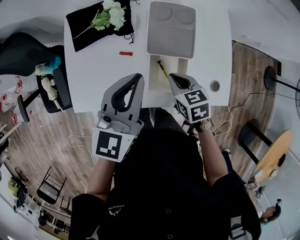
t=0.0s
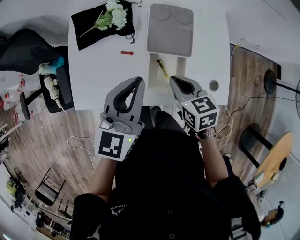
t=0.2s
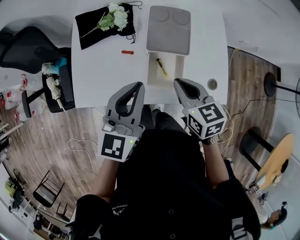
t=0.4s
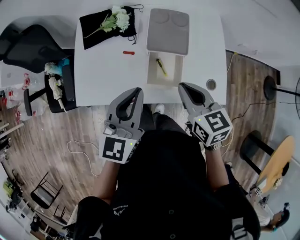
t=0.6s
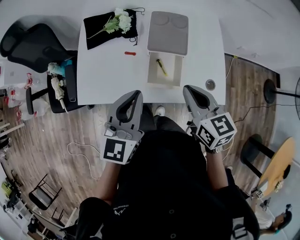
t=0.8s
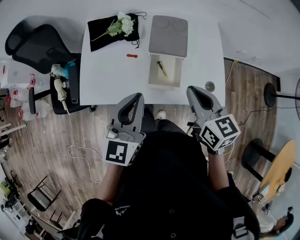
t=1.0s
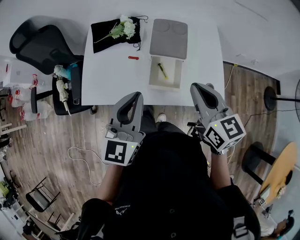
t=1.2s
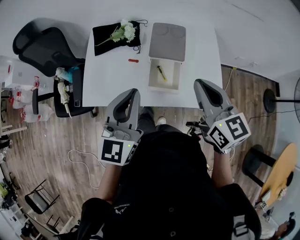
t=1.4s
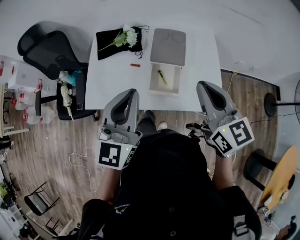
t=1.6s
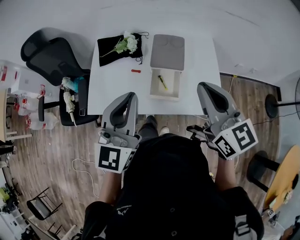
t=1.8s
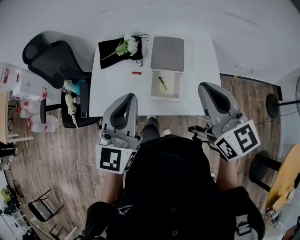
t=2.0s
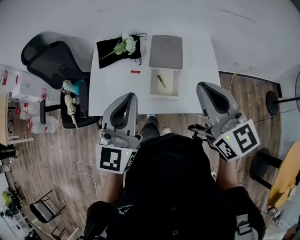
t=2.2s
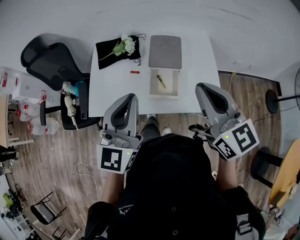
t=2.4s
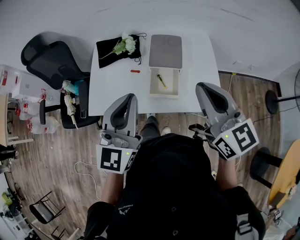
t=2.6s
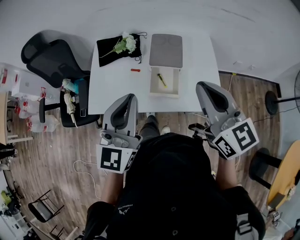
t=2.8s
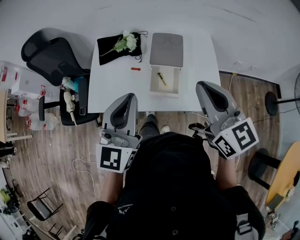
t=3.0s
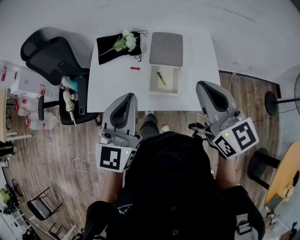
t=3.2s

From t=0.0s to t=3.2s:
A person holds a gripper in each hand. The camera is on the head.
From t=0.0s to t=1.6s: The right gripper moves upward and backward, about 30 cm, and angles its fingers upward, by approximately 40 degrees, while the left gripper goes approximately 20 cm backward and upward, and turns by some 20 degrees.
From t=1.6s to t=3.2s: There are only small adjustments of the grippers.

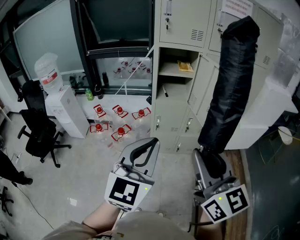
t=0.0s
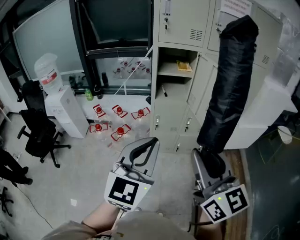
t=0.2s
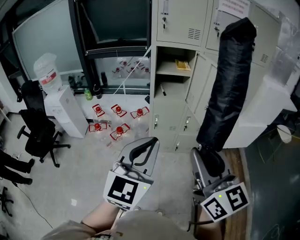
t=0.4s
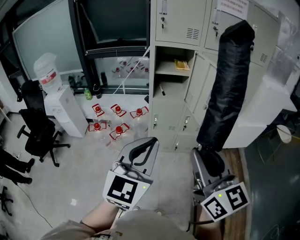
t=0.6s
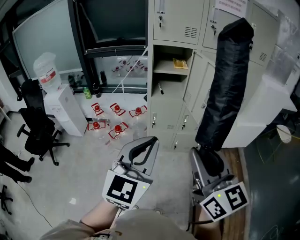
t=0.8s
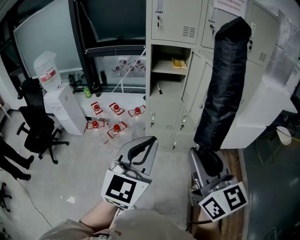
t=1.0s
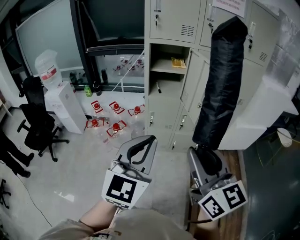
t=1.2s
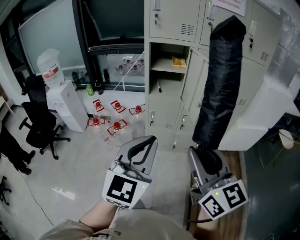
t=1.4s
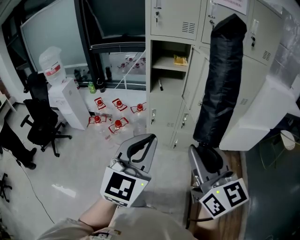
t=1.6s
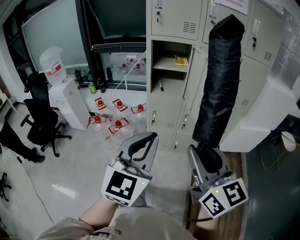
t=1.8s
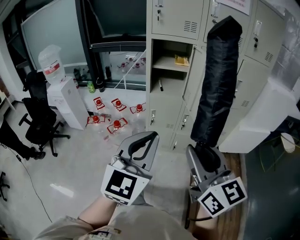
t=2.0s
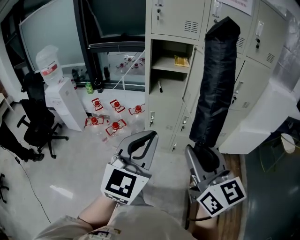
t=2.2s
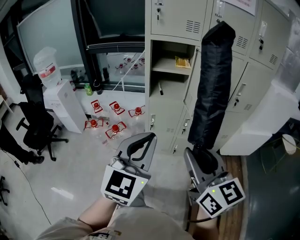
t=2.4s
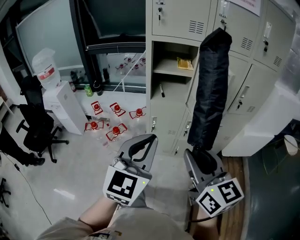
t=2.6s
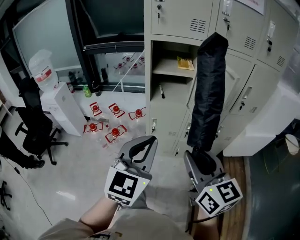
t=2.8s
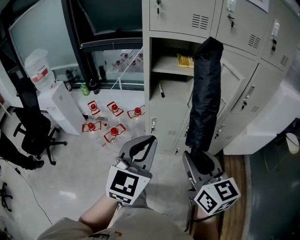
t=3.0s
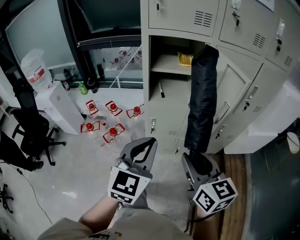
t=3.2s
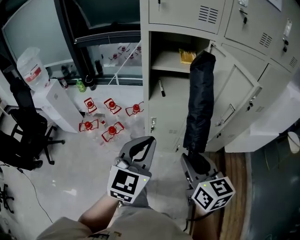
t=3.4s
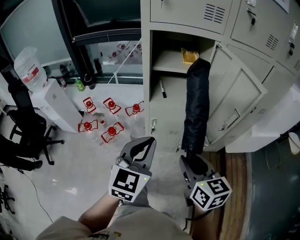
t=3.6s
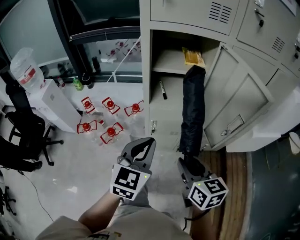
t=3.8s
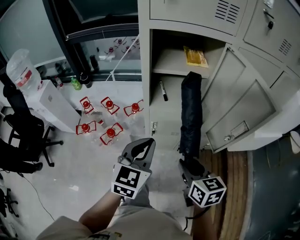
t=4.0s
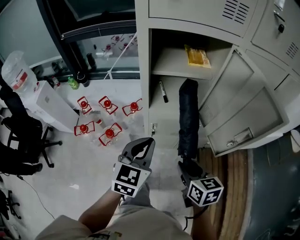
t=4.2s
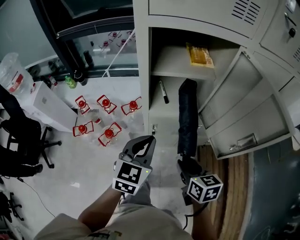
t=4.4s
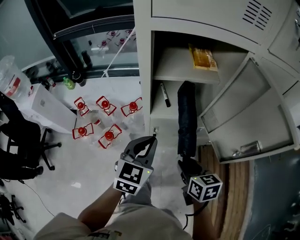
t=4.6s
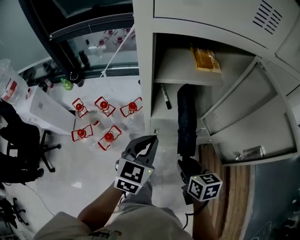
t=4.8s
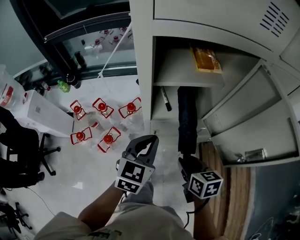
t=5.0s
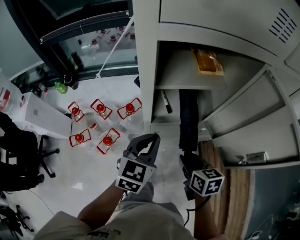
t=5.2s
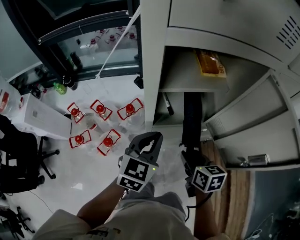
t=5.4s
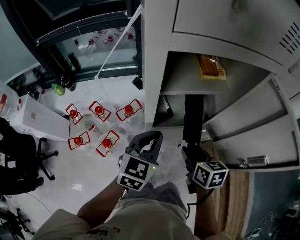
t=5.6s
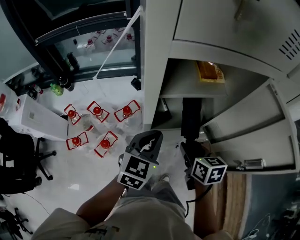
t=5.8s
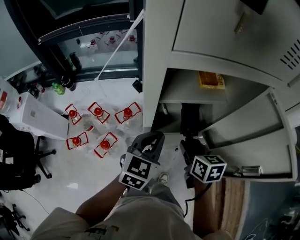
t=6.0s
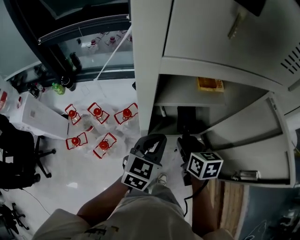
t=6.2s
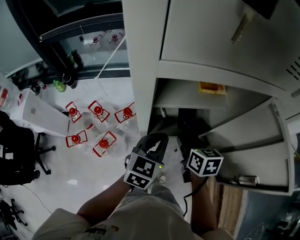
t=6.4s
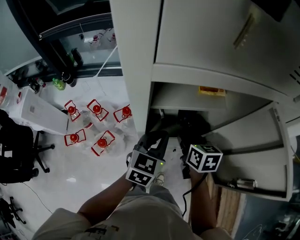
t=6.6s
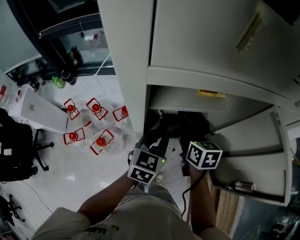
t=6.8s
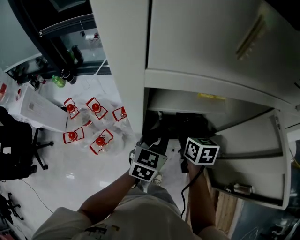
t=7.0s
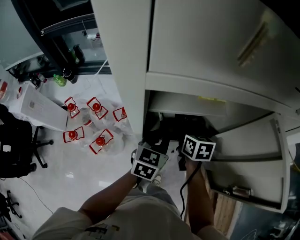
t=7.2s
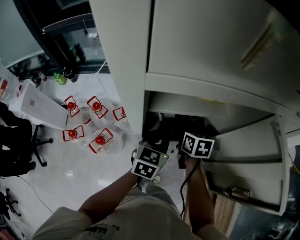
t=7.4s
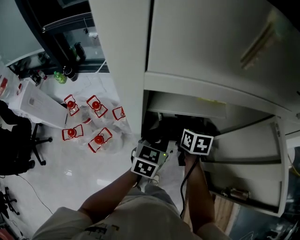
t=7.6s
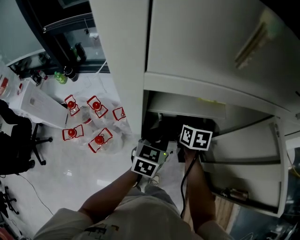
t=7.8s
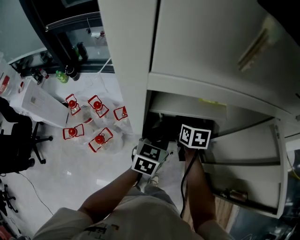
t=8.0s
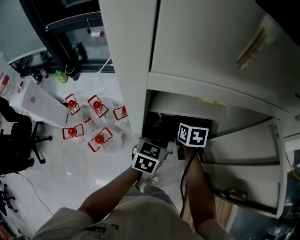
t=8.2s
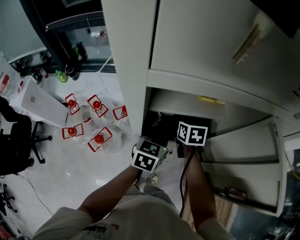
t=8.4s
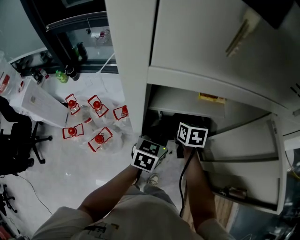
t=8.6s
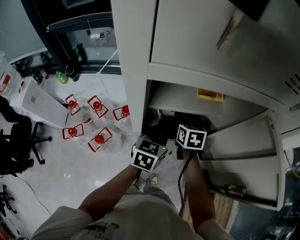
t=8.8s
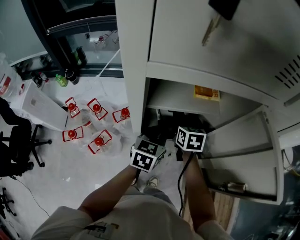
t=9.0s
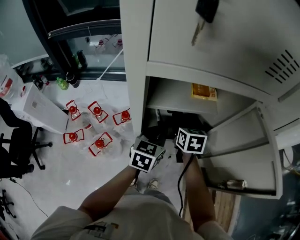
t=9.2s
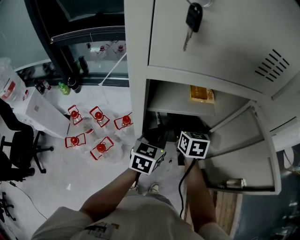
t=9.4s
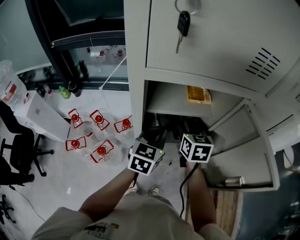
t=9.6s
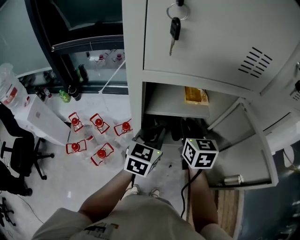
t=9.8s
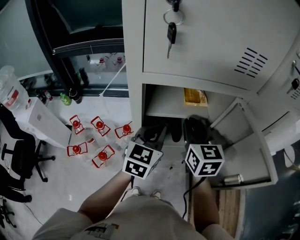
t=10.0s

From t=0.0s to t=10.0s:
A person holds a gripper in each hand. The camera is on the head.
From t=0.0s to t=1.4s: The grippers both shift to the right by roughly 10 cm.
From t=1.4s to t=2.8s: The right gripper is displaced forward and downward by about 15 cm; the left gripper is displaced forward by some 15 cm.
From t=2.8s to t=4.2s: The left gripper goes some 25 cm forward and downward; the right gripper heads downward and forward, covering approximately 30 cm, and turns by some 30 degrees.
From t=4.2s to t=5.8s: The grippers both shift forward by about 15 cm.
From t=5.8s to t=7.2s: The right gripper travels forward by about 15 cm; the left gripper goes roughly 10 cm forward and to the right.
From t=7.2s to t=8.6s: There are only small adjustments of the grippers.
From t=8.6s to t=10.0s: The right gripper travels upward by roughly 25 cm, turns by about 30 degrees, and closes. The left gripper is displaced upward by about 15 cm.

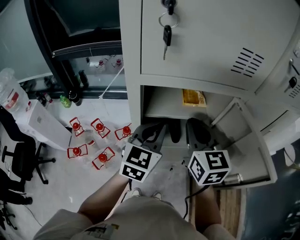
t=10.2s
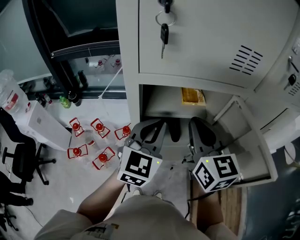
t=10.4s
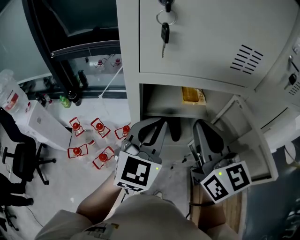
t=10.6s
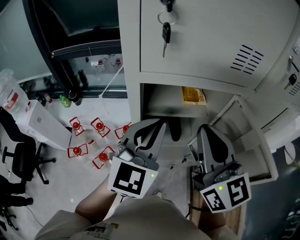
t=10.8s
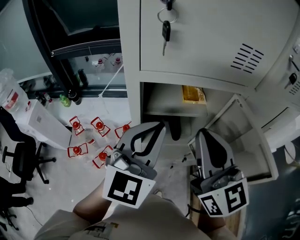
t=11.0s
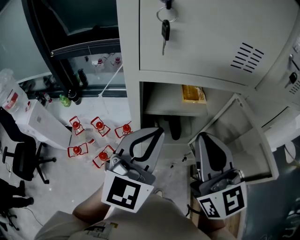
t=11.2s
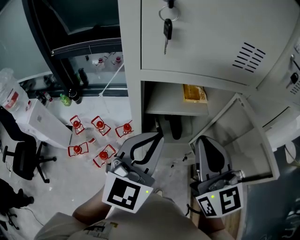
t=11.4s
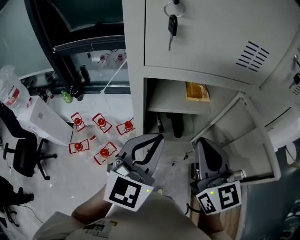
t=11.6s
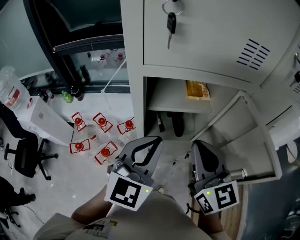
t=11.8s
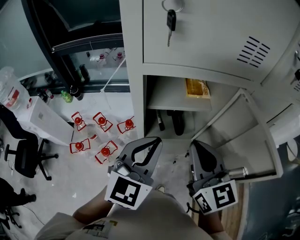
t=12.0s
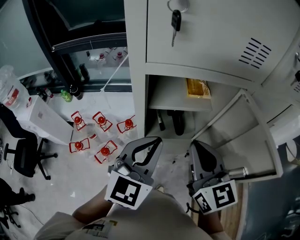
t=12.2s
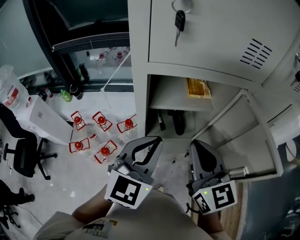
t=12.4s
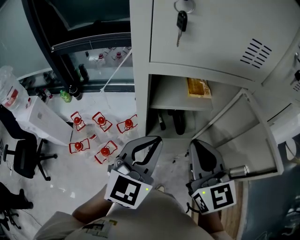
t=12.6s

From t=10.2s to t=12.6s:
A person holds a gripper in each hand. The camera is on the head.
From t=10.2s to t=11.4s: Both grippers move backward and upward, roughly 10 cm.
From t=11.4s to t=12.6s: The right gripper moves approximately 5 cm.

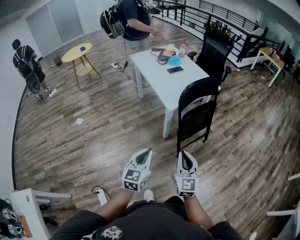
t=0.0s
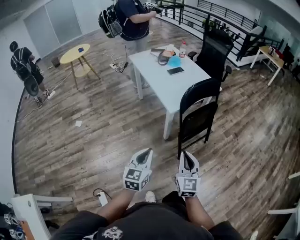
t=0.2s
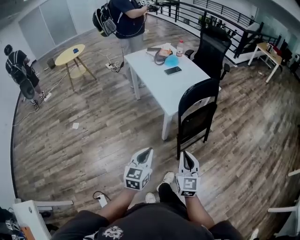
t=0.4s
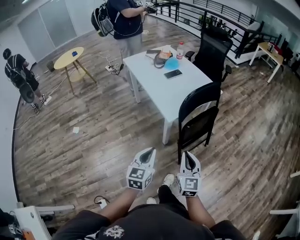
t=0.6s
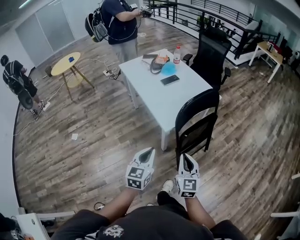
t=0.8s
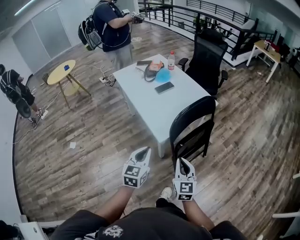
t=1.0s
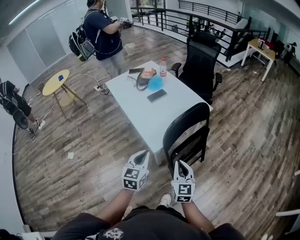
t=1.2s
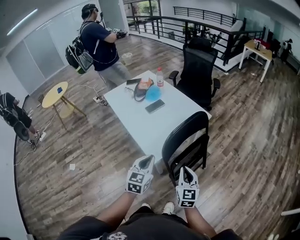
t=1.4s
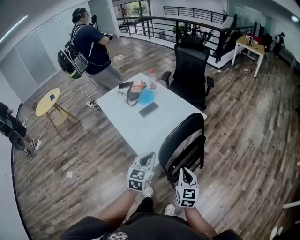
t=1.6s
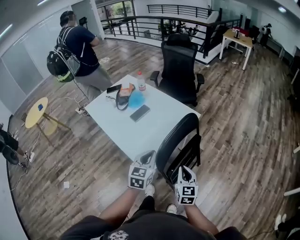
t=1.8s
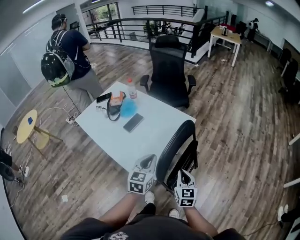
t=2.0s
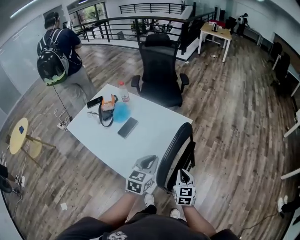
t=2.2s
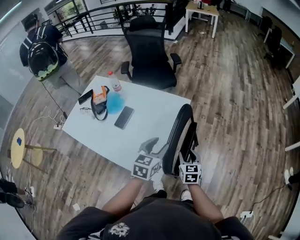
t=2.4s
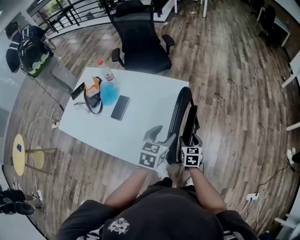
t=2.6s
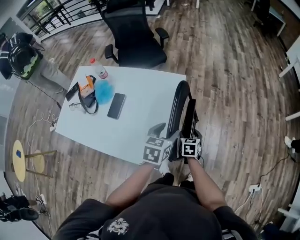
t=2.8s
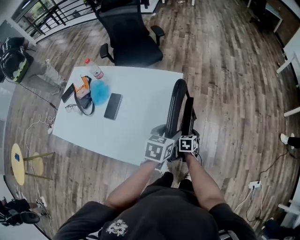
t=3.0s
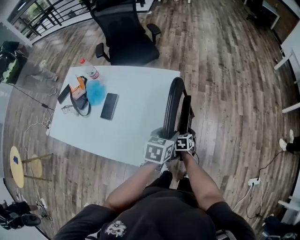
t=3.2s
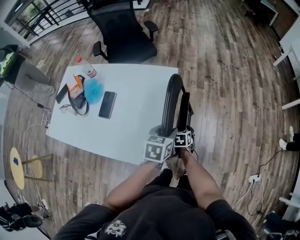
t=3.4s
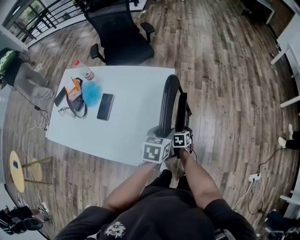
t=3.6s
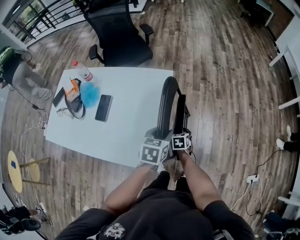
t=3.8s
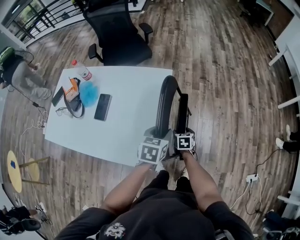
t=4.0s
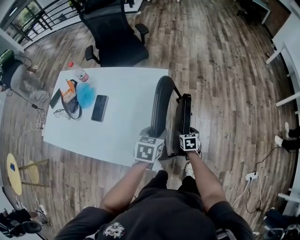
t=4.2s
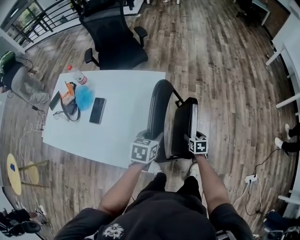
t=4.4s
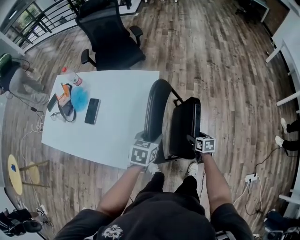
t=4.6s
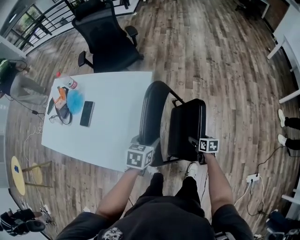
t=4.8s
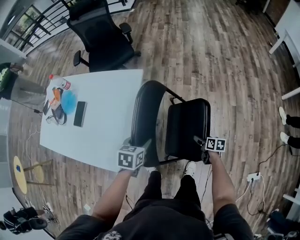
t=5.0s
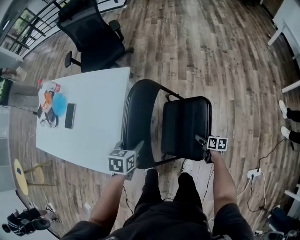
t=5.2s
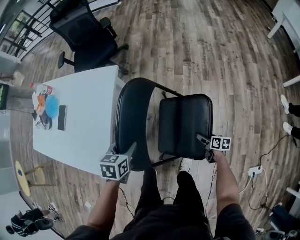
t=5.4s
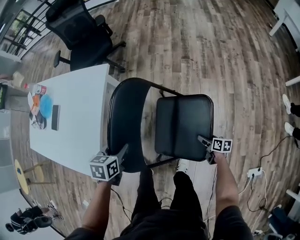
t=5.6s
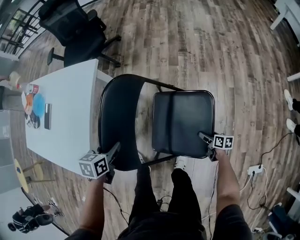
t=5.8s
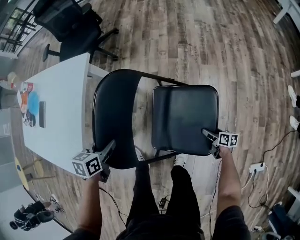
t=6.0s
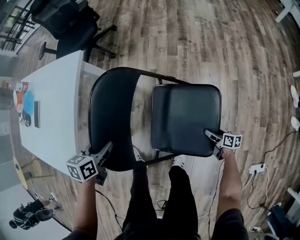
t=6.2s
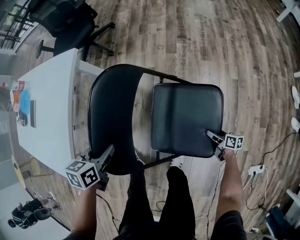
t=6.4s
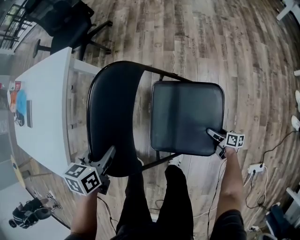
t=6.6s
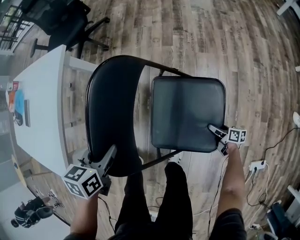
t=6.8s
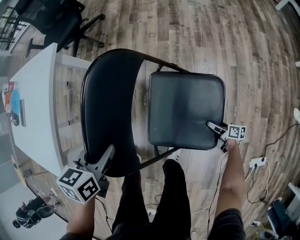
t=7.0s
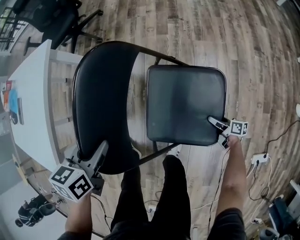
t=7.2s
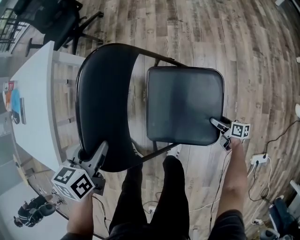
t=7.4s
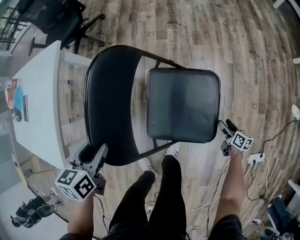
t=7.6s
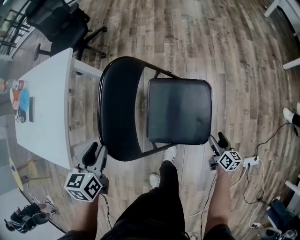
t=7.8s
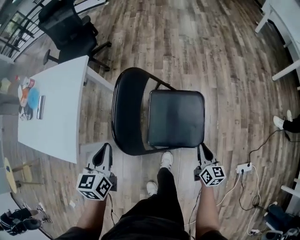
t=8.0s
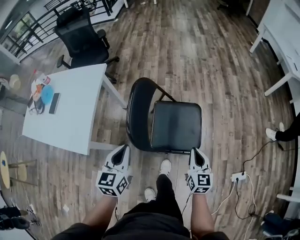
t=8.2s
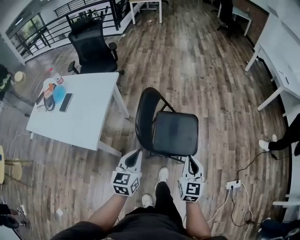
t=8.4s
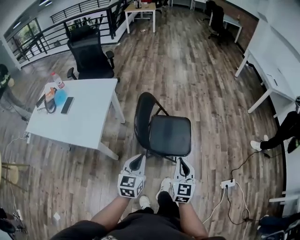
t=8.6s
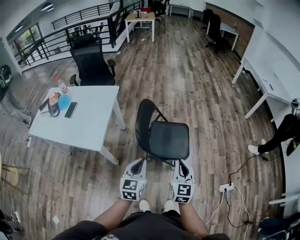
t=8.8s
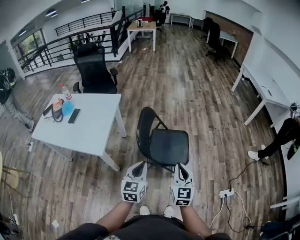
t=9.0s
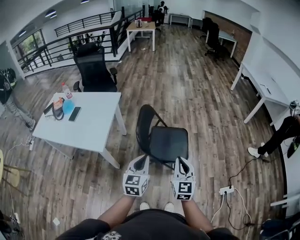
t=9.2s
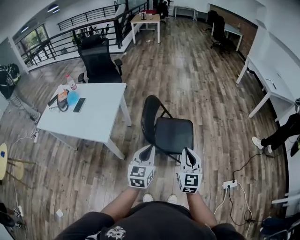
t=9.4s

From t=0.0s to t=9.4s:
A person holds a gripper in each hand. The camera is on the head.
From t=0.0s to t=1.6s: The two grippers go approximately 40 cm forward. The right gripper turns by some 20 degrees.
From t=1.6s to t=3.2s: The right gripper goes approximately 30 cm downward, angles its fingers downward, by roughly 40 degrees, and opens its fingers, while the left gripper moves approximately 20 cm, rotates roughly 50 degrees, and opens.
From t=3.2s to t=4.8s: The left gripper shifts roughly 10 cm to the right. The right gripper heads to the right, covering roughly 25 cm, and swivels some 30 degrees.
From t=4.8s to t=6.2s: The left gripper goes roughly 20 cm downward and to the right; the right gripper goes some 40 cm to the right and downward, and turns by some 30 degrees.
From t=6.2s to t=7.8s: Both grippers travel together upward, backward and to the right, approximately 15 cm. The right gripper turns by approximately 30 degrees.
From t=7.8s to t=9.4s: The right gripper is displaced upward, backward and to the left by some 60 cm, rolls counterclockwise, seen from behind, by roughly 50 degrees, and closes; the left gripper moves backward and upward, about 40 cm, tilts its fingers approximately 30 degrees upward, and closes its fingers.
